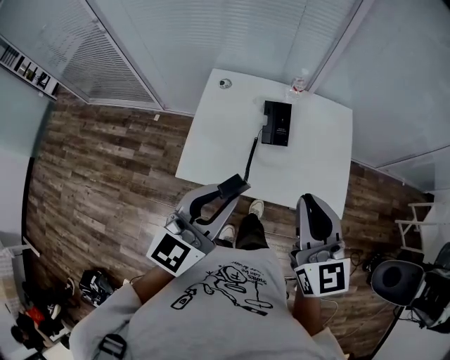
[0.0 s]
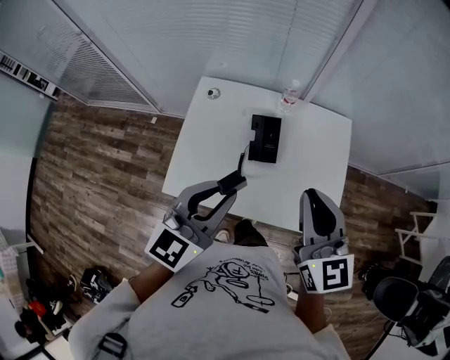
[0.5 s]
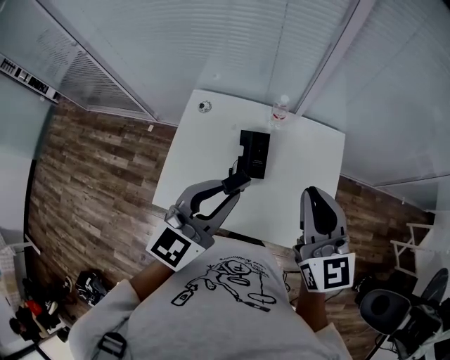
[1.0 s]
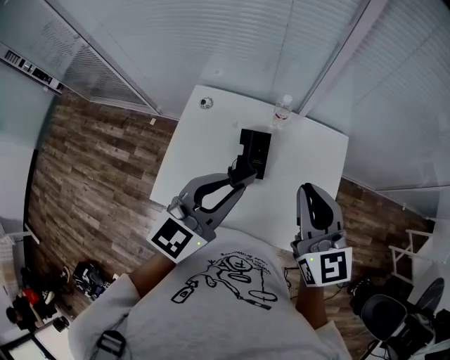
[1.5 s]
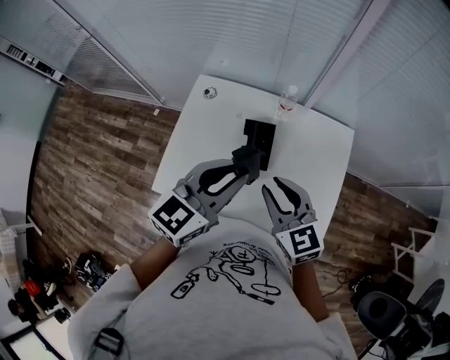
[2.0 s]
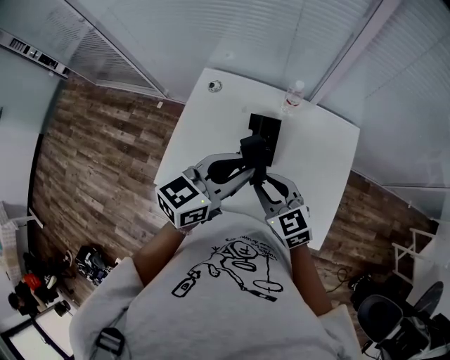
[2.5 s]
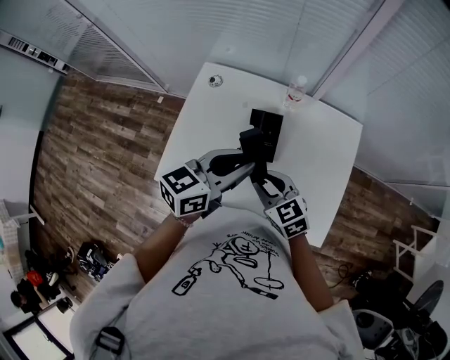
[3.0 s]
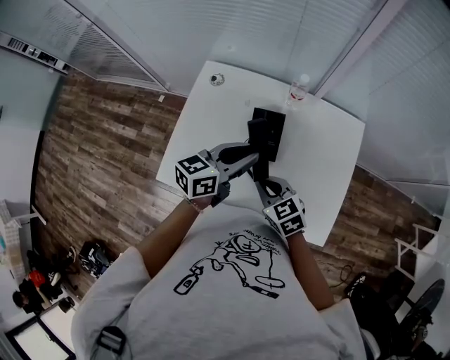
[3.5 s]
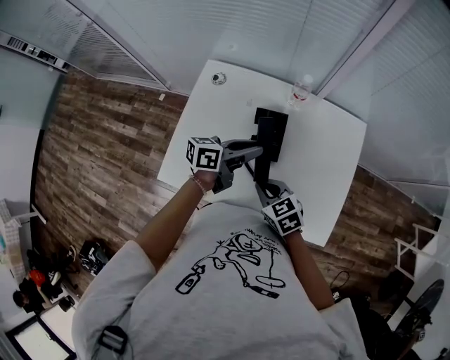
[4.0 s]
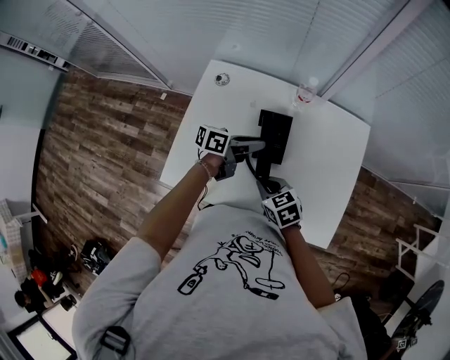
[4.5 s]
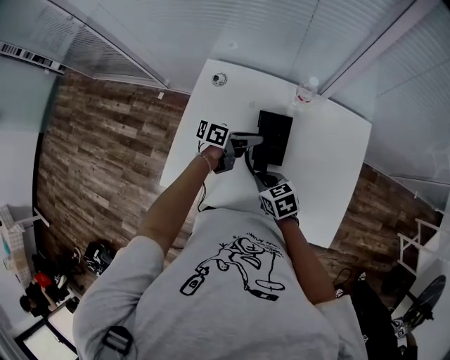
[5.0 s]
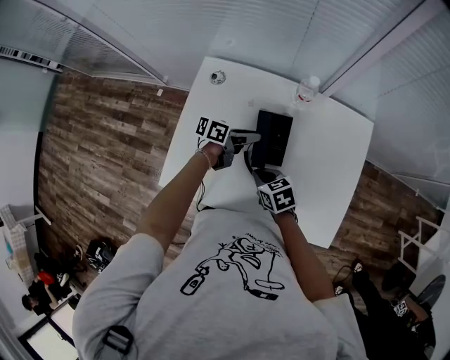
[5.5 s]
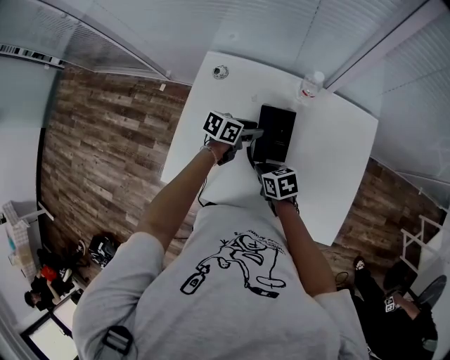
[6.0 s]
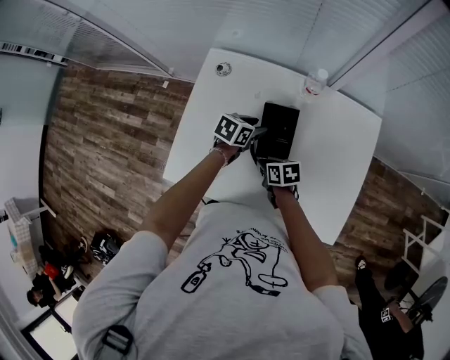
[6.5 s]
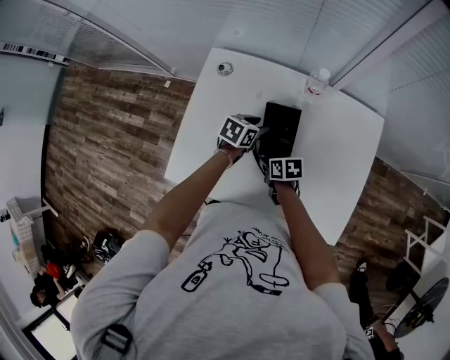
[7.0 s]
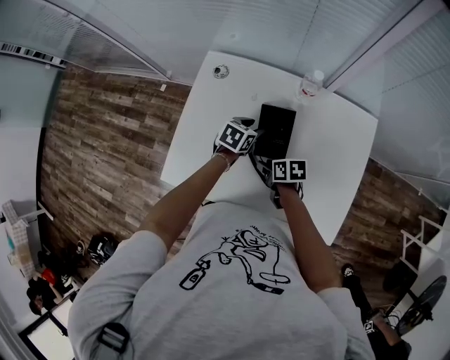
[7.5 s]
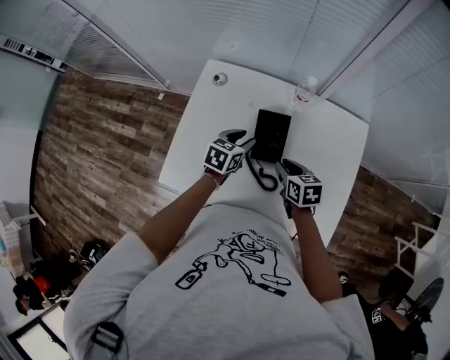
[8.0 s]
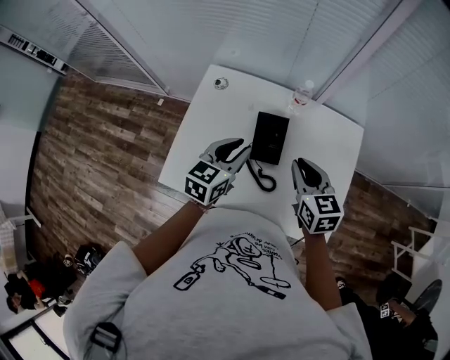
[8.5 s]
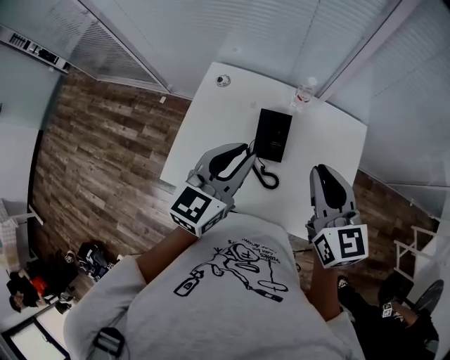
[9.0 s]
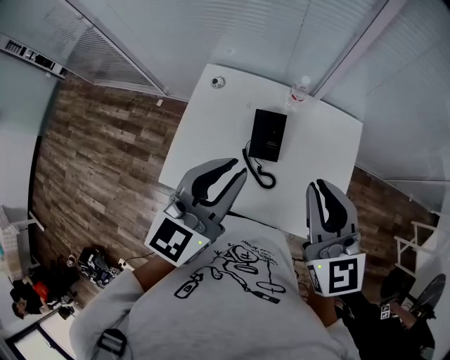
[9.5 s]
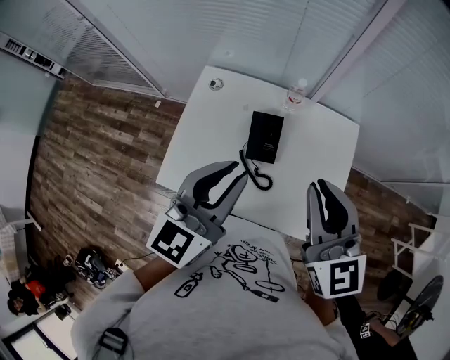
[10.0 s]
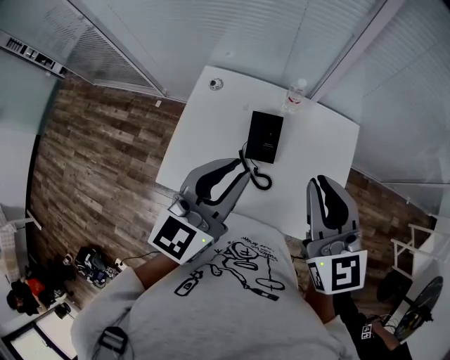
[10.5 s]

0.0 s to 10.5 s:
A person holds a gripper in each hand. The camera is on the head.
0.0 to 2.0 s: The left gripper goes roughly 25 cm forward and to the right. The right gripper goes roughly 25 cm forward and downward, and swivels some 30 degrees.
2.0 to 4.0 s: The two grippers go roughly 20 cm downward. The left gripper rolls counterclockwise, seen from behind, by some 40 degrees. The right gripper rotates about 30 degrees.
4.0 to 6.5 s: Both grippers move downward, approximately 15 cm. The left gripper angles its fingers downward, by about 40 degrees, and opens up; the right gripper changes its angle by about 40 degrees.
6.5 to 8.5 s: Both grippers travel together upward, about 20 cm. The right gripper changes its angle by roughly 40 degrees, and opens and closes again. Meanwhile the left gripper turns by some 30 degrees.
8.5 to 10.5 s: The grippers both shift upward by roughly 20 cm. The left gripper turns by approximately 20 degrees. Meanwhile the right gripper rotates about 20 degrees.

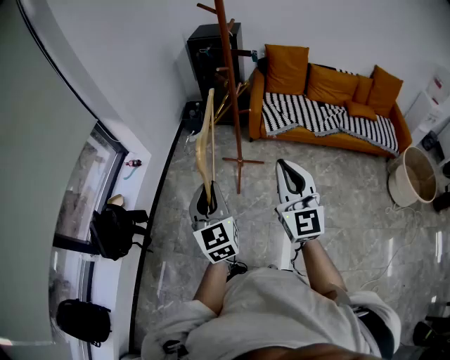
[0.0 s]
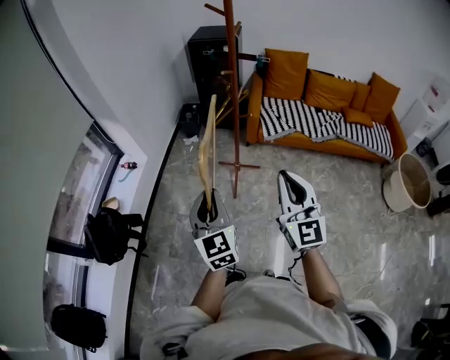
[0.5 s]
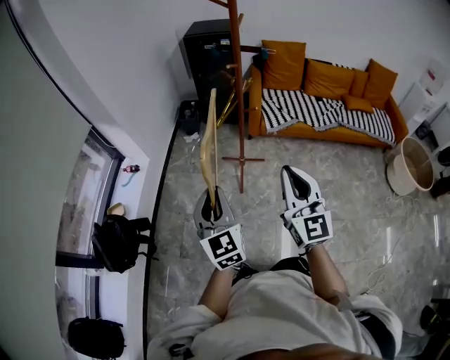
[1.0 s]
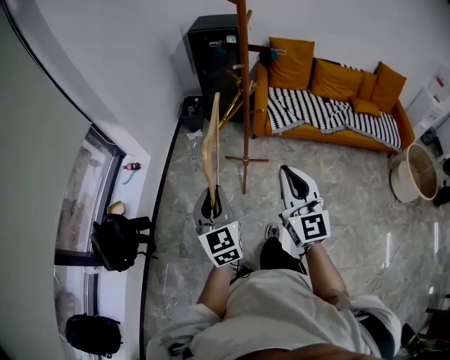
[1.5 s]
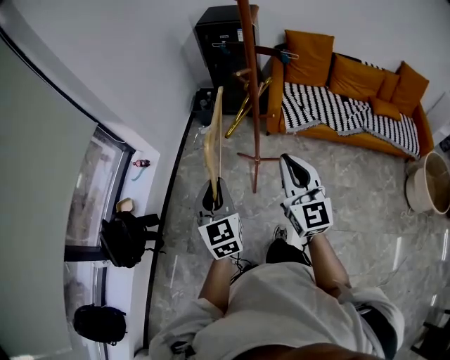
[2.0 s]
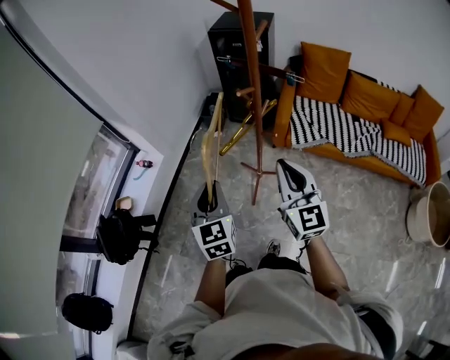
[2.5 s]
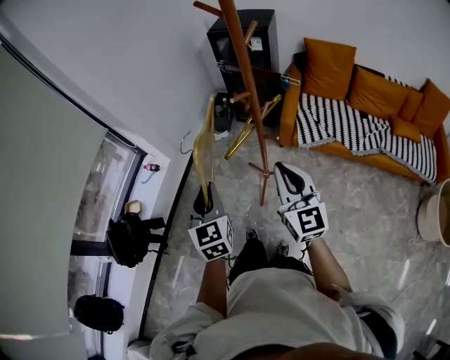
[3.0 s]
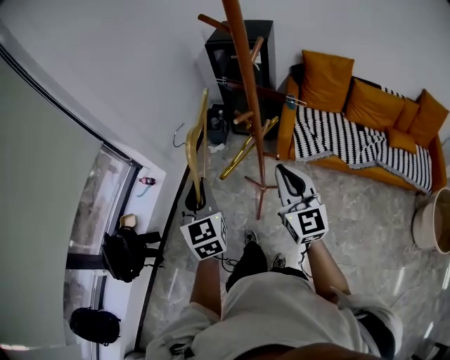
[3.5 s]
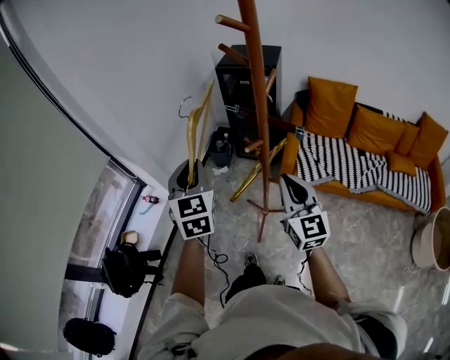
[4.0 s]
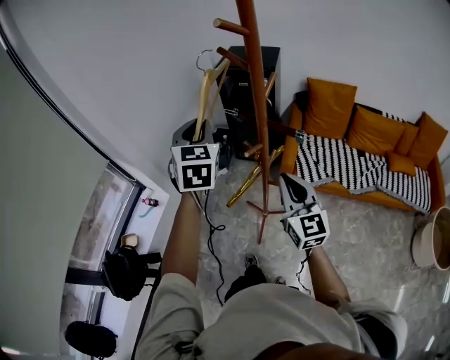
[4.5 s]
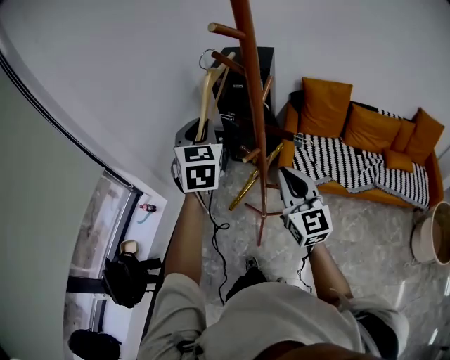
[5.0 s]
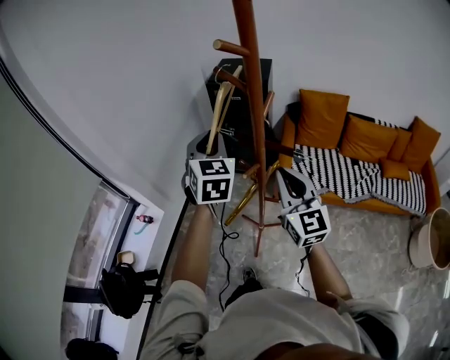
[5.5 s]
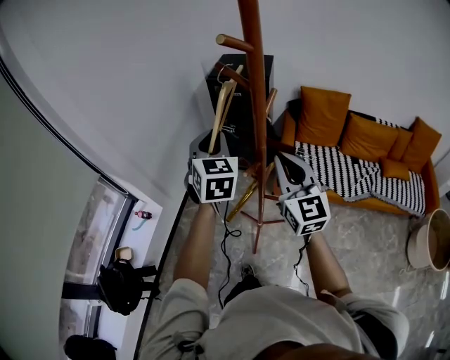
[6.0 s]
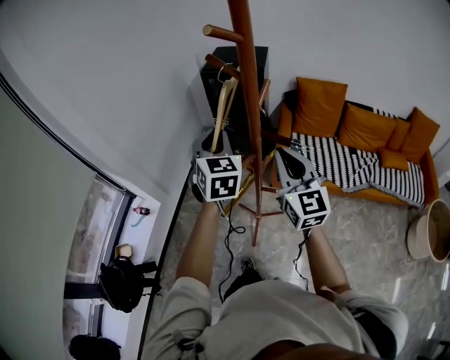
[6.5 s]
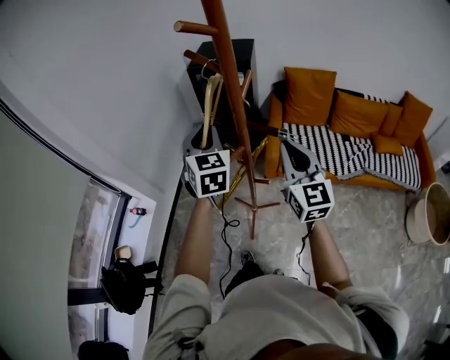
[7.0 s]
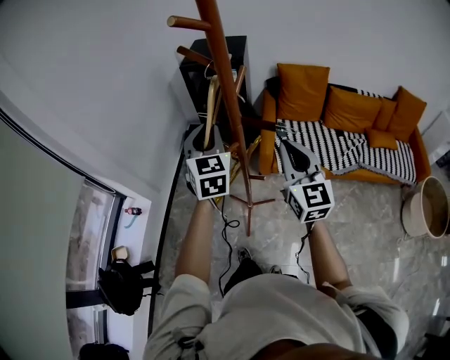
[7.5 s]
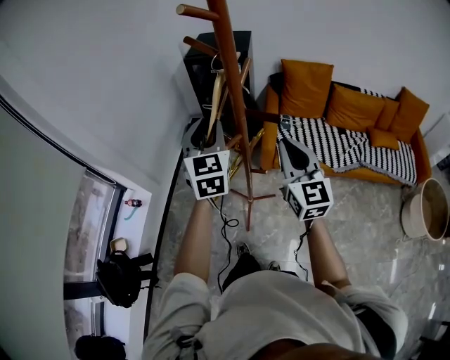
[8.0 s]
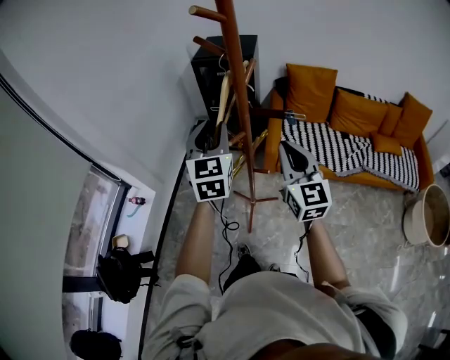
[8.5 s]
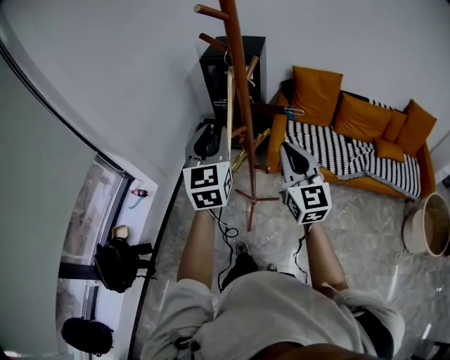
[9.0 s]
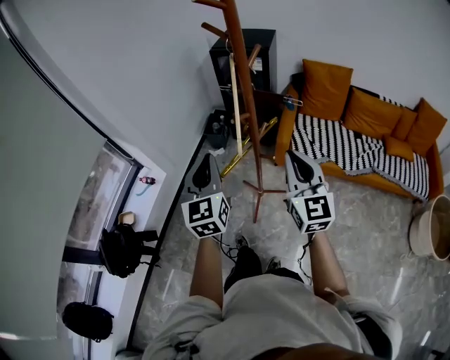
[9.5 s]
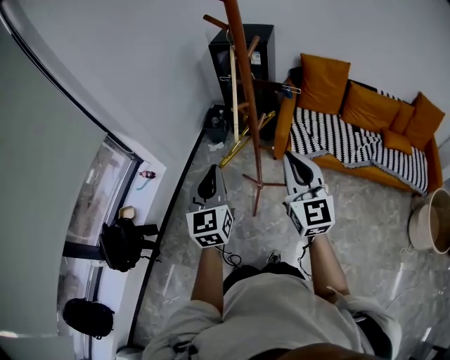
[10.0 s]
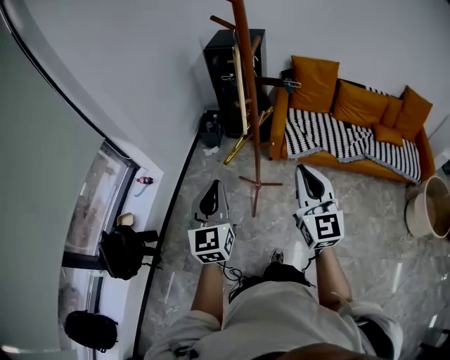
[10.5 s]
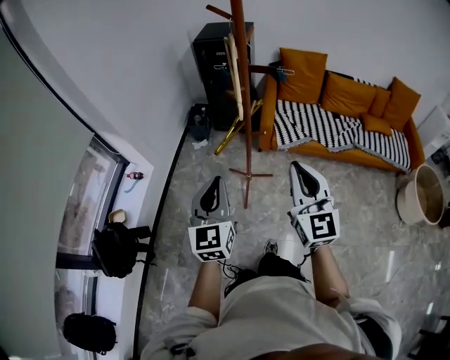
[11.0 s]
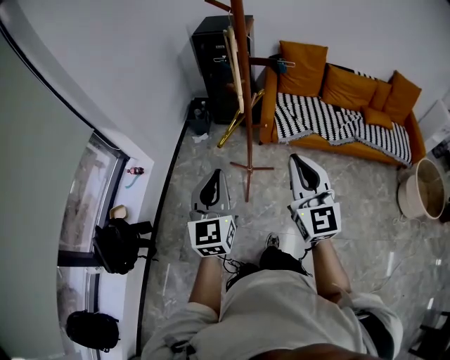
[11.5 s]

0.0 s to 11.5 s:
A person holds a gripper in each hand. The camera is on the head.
0.0 to 2.0 s: Both grippers move forward, roughly 20 cm.
2.0 to 4.0 s: The right gripper moves forward, approximately 20 cm. Meanwhile the left gripper heads forward and upward, covering about 30 cm.
4.0 to 6.0 s: The right gripper travels forward and upward by about 10 cm, while the left gripper heads forward and to the right, covering roughly 15 cm.
6.0 to 7.5 s: The left gripper shifts by some 5 cm; the right gripper shifts roughly 5 cm to the right.
7.5 to 9.5 s: The left gripper heads backward, covering roughly 20 cm. Meanwhile the right gripper is displaced backward by roughly 10 cm.
9.5 to 11.5 s: The two grippers go about 15 cm backward.

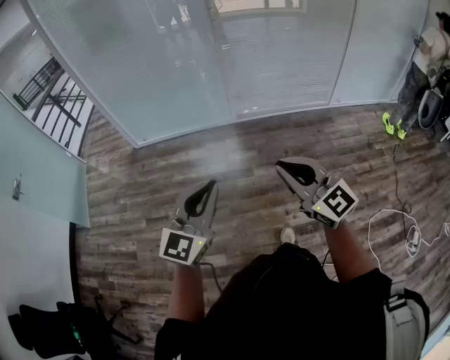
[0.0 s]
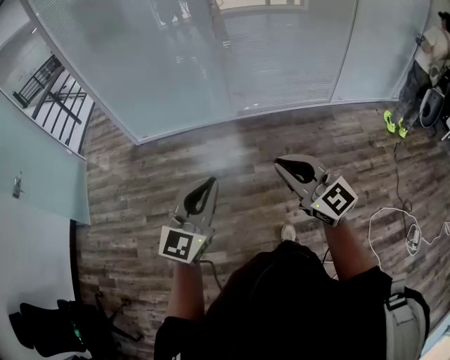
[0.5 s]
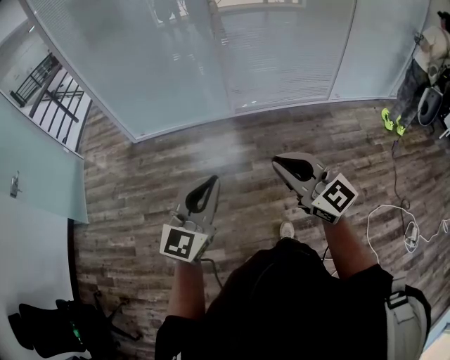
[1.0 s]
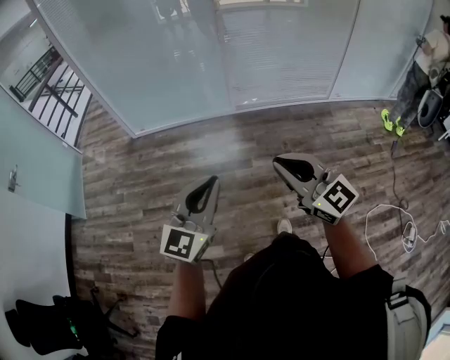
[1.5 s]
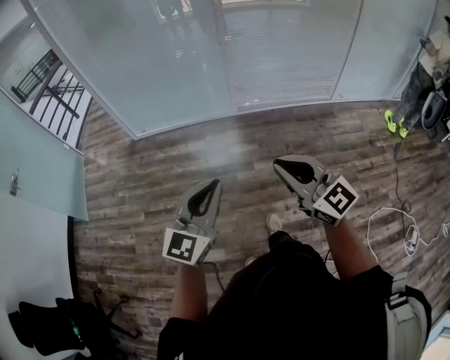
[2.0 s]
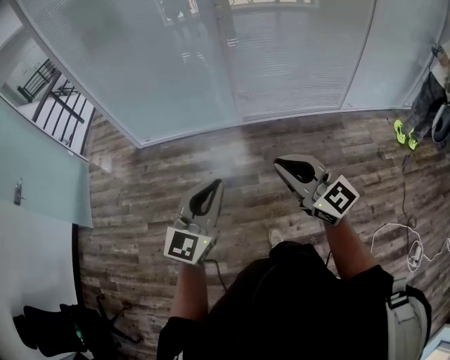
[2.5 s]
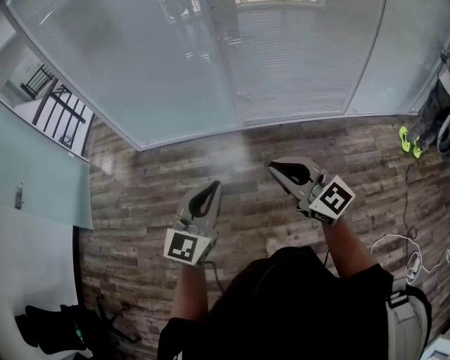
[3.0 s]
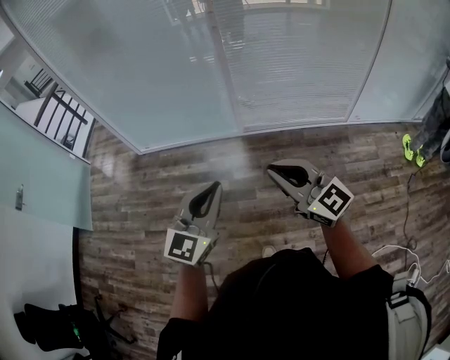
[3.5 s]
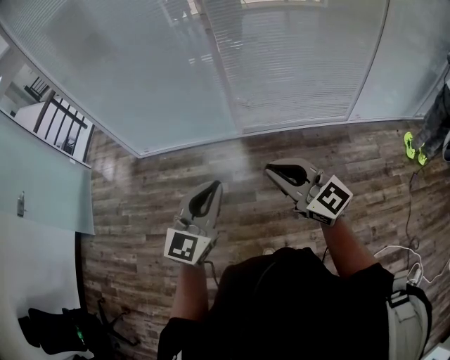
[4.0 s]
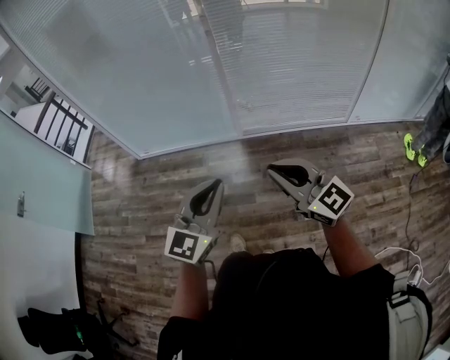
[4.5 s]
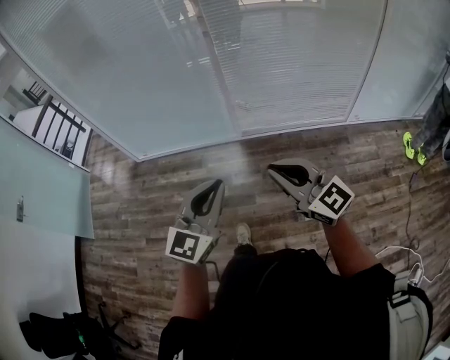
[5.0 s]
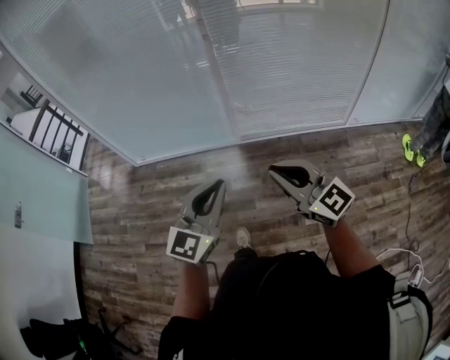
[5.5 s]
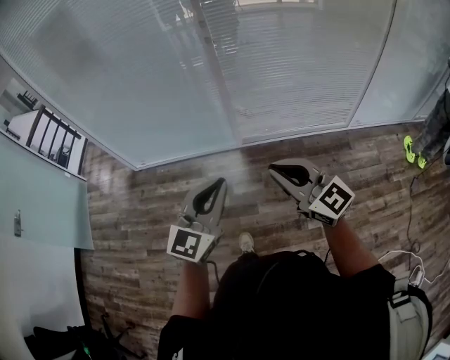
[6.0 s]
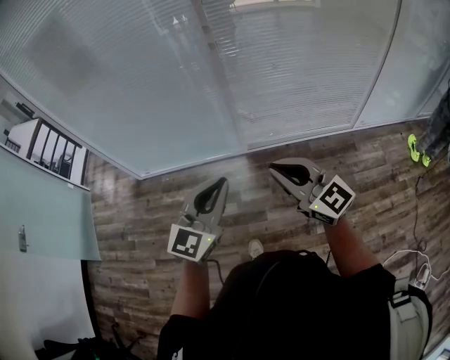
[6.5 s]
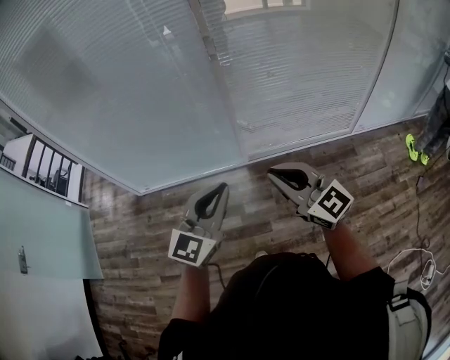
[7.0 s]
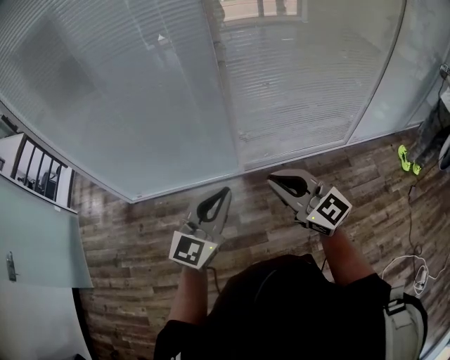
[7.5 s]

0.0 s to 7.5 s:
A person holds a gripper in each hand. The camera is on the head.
0.0 to 2.0 s: The grippers make only small movements.
2.0 to 4.0 s: Both grippers move forward and to the right, approximately 25 cm.
4.0 to 5.5 s: The grippers stay close to where they were, moving slightly.
5.5 to 7.5 s: The two grippers go approximately 20 cm forward and to the left.
